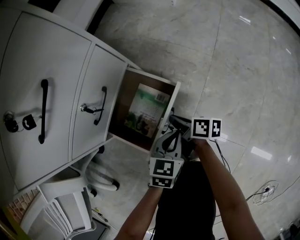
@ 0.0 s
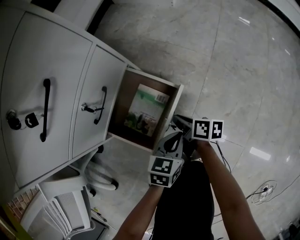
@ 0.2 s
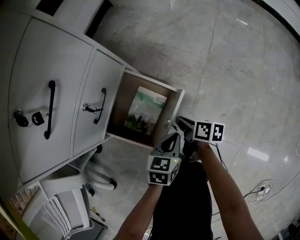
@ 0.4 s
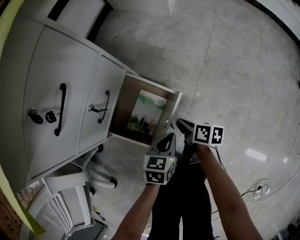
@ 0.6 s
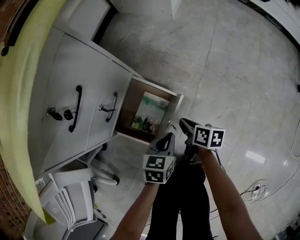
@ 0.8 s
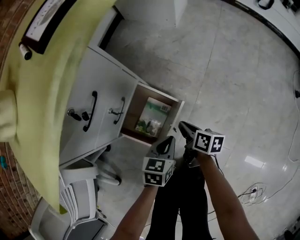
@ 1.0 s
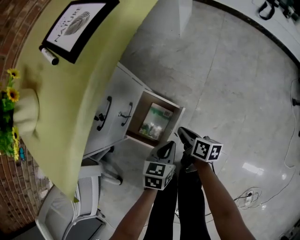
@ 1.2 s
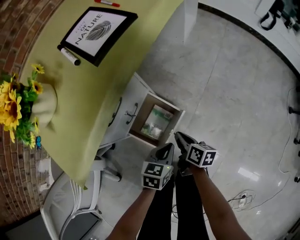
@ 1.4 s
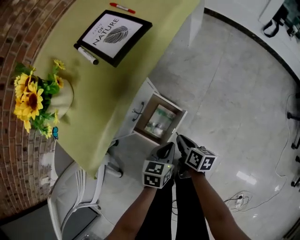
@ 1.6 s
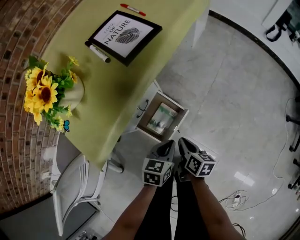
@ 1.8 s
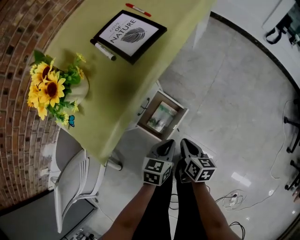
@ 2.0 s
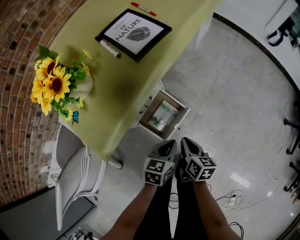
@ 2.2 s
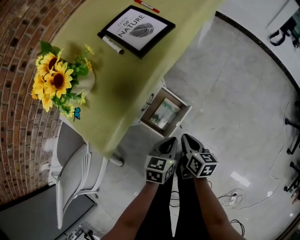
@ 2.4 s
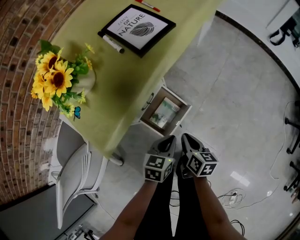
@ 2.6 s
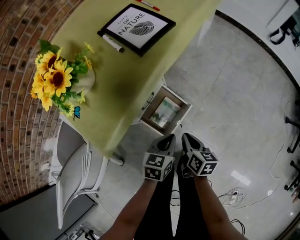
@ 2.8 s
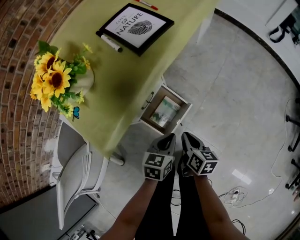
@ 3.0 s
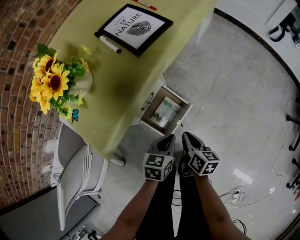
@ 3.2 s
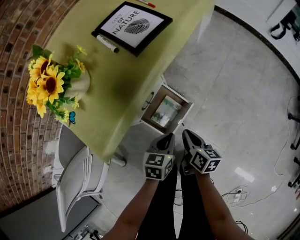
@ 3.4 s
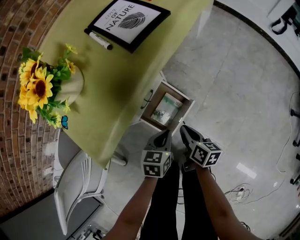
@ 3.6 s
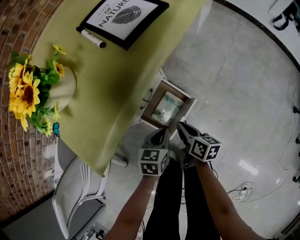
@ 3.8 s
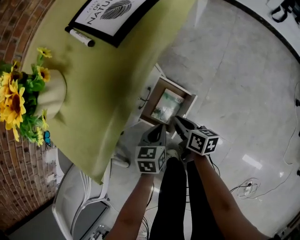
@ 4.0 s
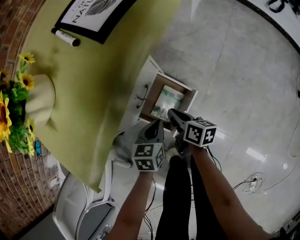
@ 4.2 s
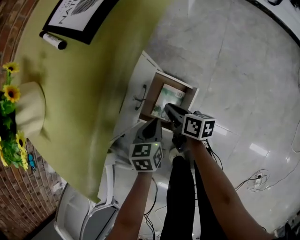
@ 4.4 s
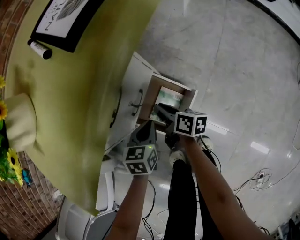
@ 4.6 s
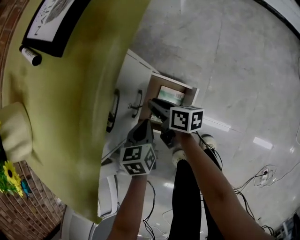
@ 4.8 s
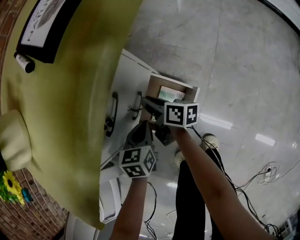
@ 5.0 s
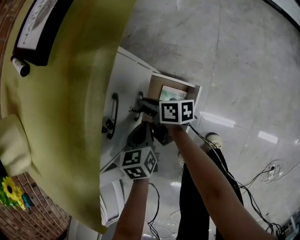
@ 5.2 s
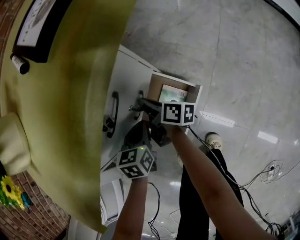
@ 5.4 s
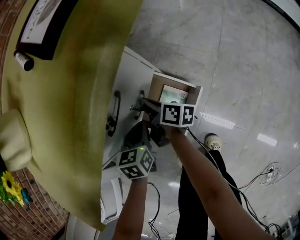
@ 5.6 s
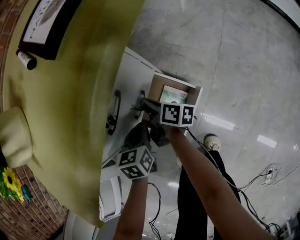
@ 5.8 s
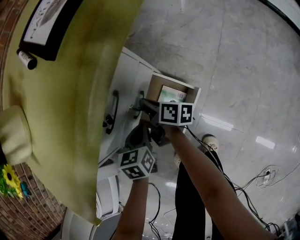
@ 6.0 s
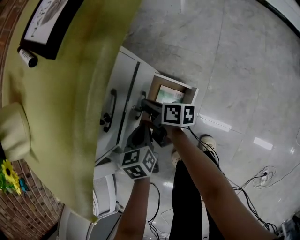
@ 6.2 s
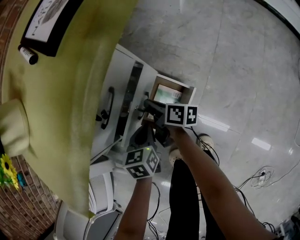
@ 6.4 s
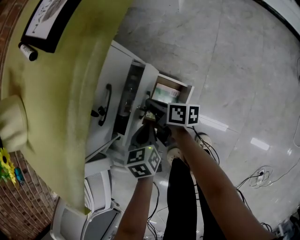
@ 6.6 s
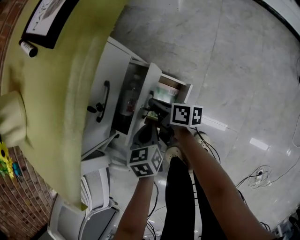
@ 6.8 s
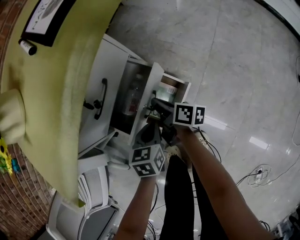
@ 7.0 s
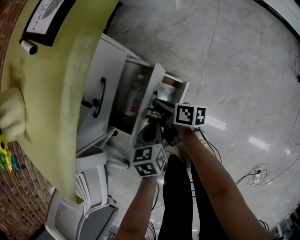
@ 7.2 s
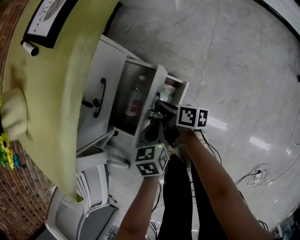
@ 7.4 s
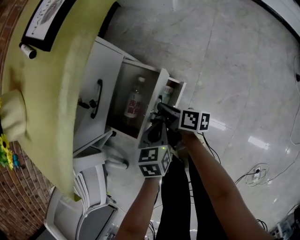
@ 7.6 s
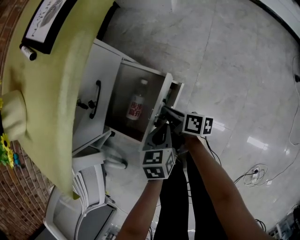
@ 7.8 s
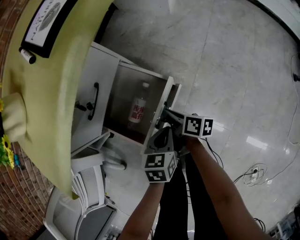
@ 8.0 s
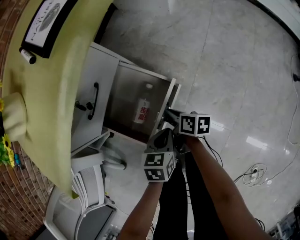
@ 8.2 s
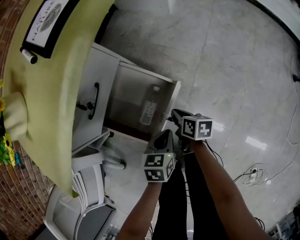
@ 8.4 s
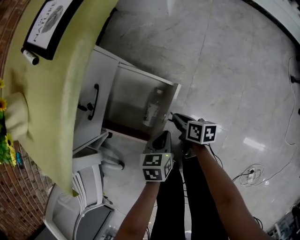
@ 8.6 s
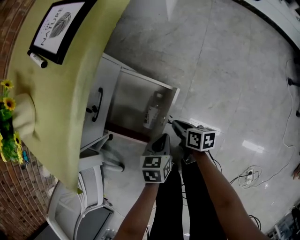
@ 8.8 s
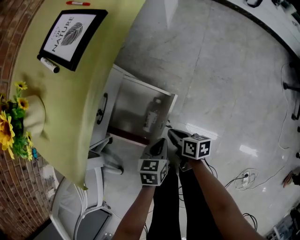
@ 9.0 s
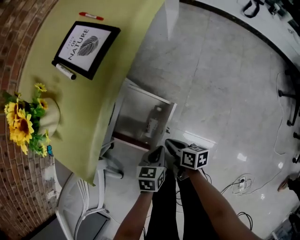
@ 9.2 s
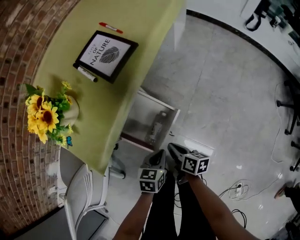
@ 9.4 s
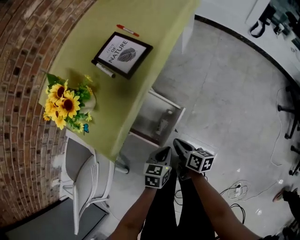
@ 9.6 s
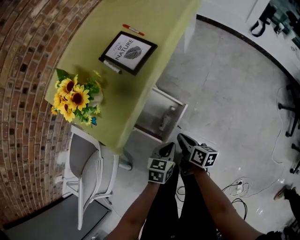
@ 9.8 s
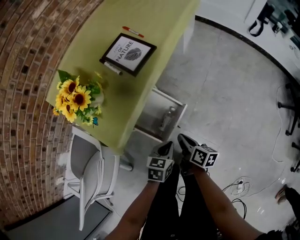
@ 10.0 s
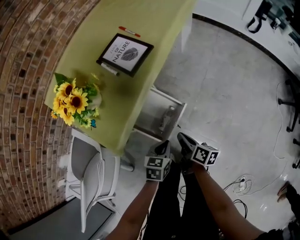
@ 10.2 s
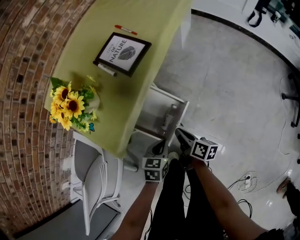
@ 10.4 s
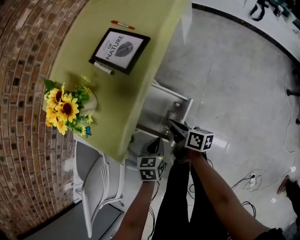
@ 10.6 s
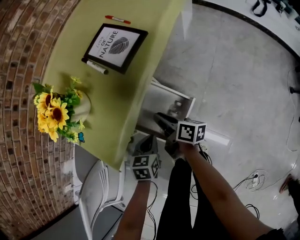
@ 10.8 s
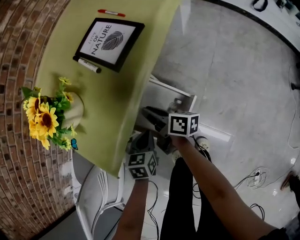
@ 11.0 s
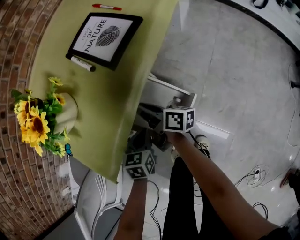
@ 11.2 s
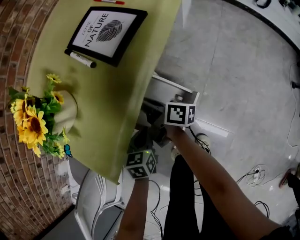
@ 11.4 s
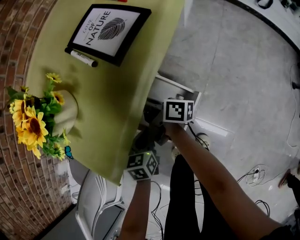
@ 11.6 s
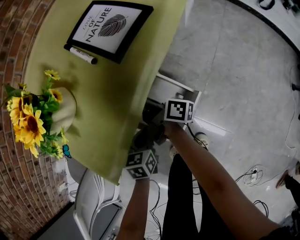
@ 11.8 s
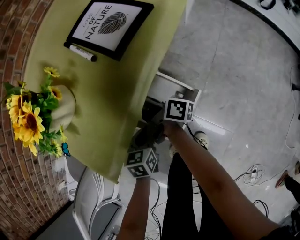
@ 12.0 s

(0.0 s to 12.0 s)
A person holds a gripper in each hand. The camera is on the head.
0.0 s - 1.6 s: The grippers both shift upward by roughly 25 cm.
1.6 s - 3.0 s: Both grippers travel together upward, roughly 5 cm.
3.0 s - 4.4 s: The right gripper goes about 20 cm downward, forward and to the left, and swivels about 20 degrees; the left gripper heads downward, to the left and forward, covering some 15 cm.
4.4 s - 6.0 s: The right gripper travels forward and to the left by about 10 cm; the left gripper moves approximately 5 cm.
6.0 s - 7.6 s: The left gripper is displaced to the right and backward by approximately 15 cm. The right gripper moves backward and to the right, about 15 cm.
7.6 s - 9.0 s: The right gripper goes some 10 cm backward and to the right. The left gripper moves about 5 cm.
9.0 s - 10.4 s: Both grippers move upward, roughly 15 cm.
10.4 s - 12.0 s: The left gripper heads downward, forward and to the left, covering some 15 cm. Meanwhile the right gripper goes about 25 cm forward and to the left, and changes its angle by roughly 30 degrees.

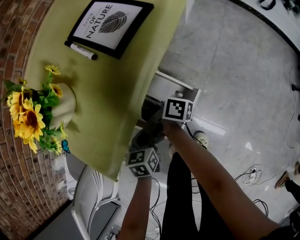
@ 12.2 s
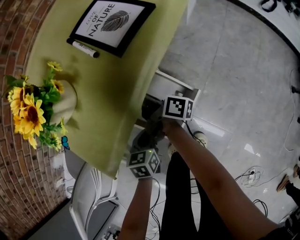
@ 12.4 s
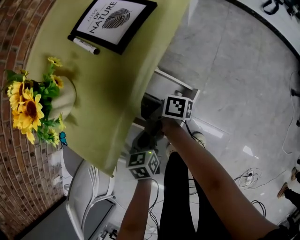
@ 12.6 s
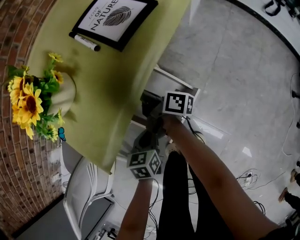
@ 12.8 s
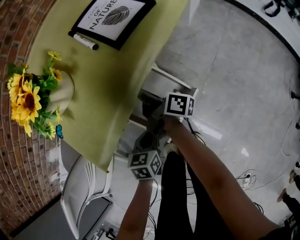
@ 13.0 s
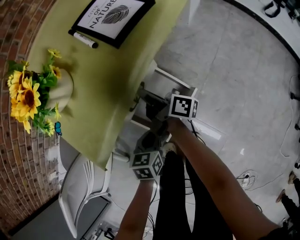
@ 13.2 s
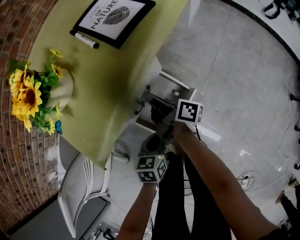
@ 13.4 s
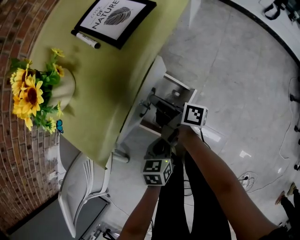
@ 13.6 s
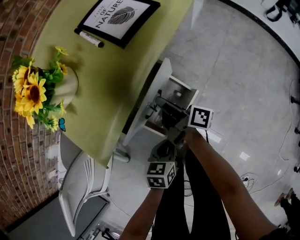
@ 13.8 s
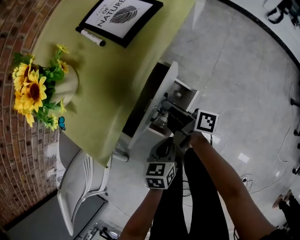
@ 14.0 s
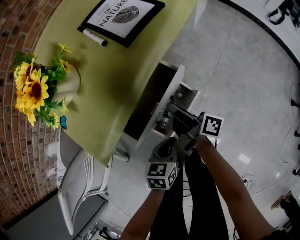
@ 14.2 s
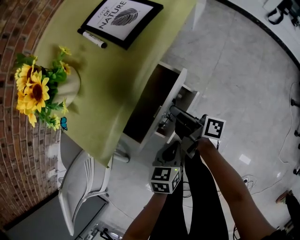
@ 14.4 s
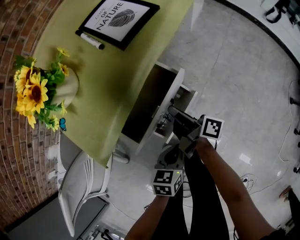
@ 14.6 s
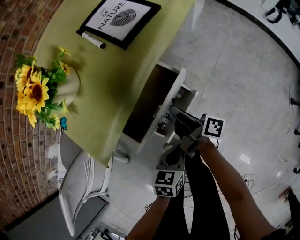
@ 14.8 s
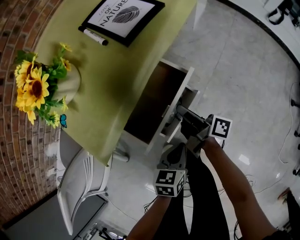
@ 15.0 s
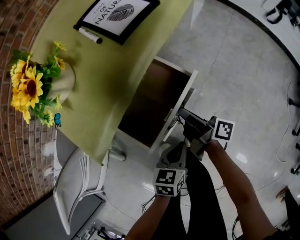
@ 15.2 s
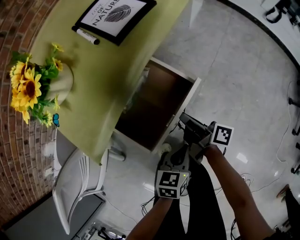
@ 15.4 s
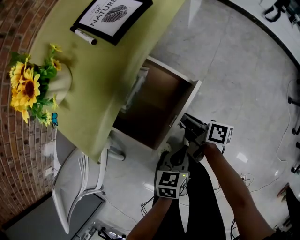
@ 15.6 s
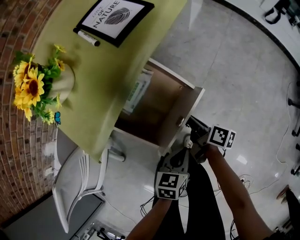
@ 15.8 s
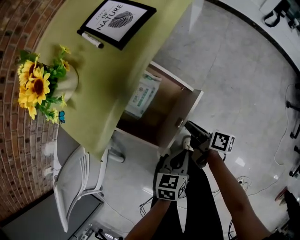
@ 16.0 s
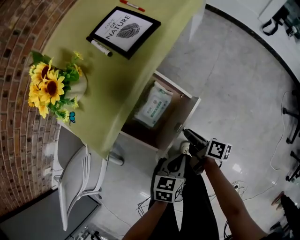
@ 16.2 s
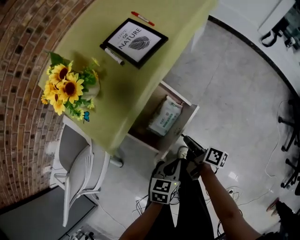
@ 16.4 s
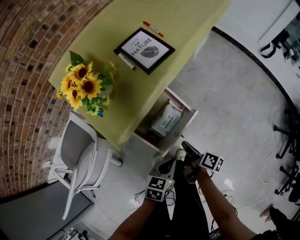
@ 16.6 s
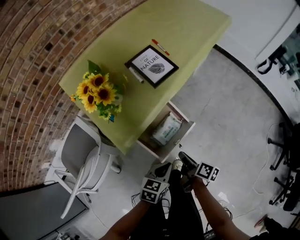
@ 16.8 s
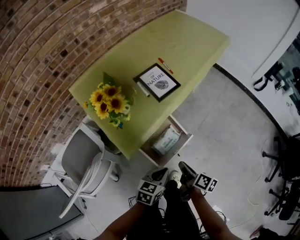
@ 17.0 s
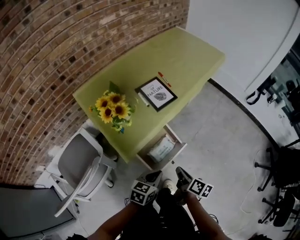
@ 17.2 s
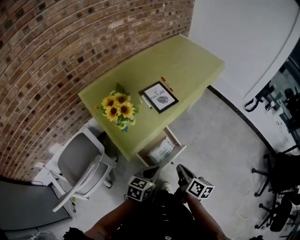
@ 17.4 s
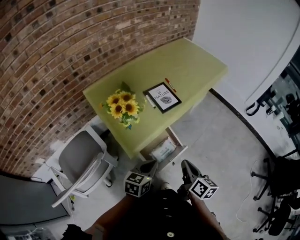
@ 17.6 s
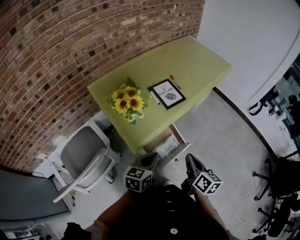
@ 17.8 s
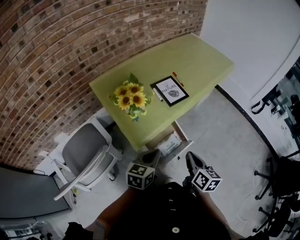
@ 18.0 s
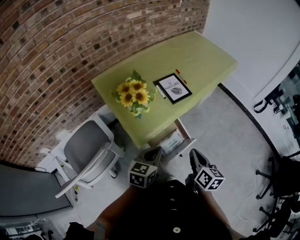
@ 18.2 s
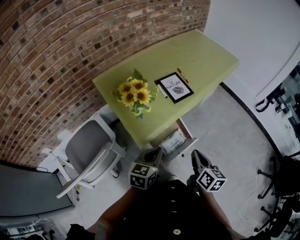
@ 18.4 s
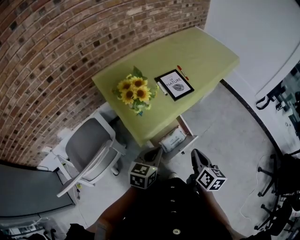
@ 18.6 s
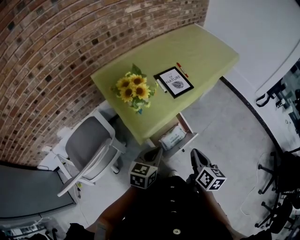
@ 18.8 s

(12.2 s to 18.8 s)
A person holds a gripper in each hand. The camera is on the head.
12.2 s - 13.8 s: The two grippers go roughly 10 cm backward and to the right.
13.8 s - 15.4 s: The left gripper is displaced to the right by about 5 cm. Meanwhile the right gripper moves to the right and backward, about 10 cm.
15.4 s - 17.2 s: The left gripper moves upward, about 25 cm. Meanwhile the right gripper moves upward and backward, roughly 25 cm, and swivels roughly 30 degrees.
17.2 s - 18.8 s: The left gripper shifts about 10 cm upward and to the left; the right gripper travels upward by roughly 10 cm, and swivels approximately 30 degrees.

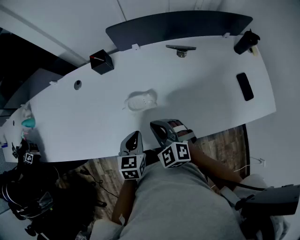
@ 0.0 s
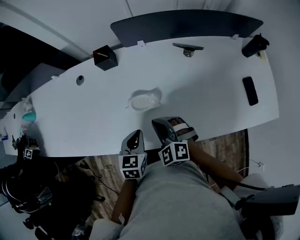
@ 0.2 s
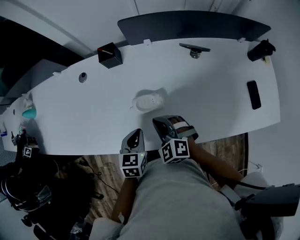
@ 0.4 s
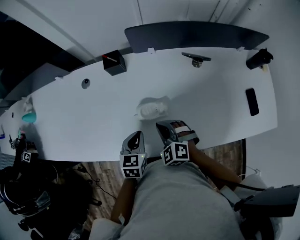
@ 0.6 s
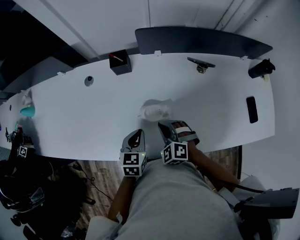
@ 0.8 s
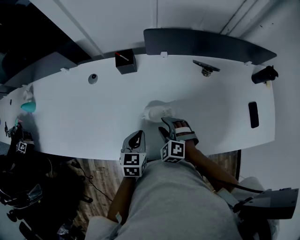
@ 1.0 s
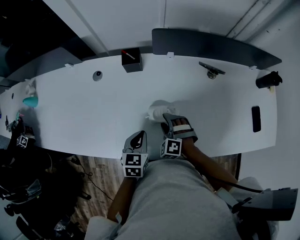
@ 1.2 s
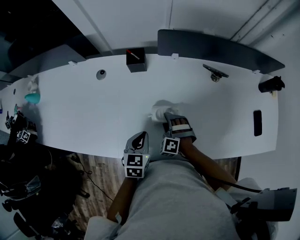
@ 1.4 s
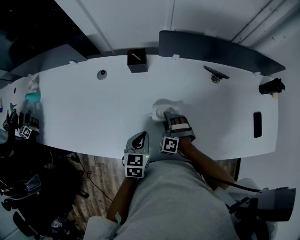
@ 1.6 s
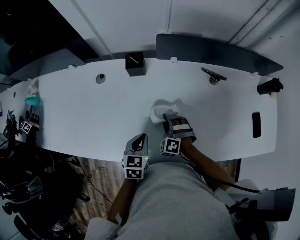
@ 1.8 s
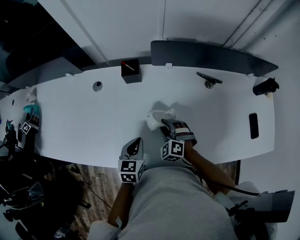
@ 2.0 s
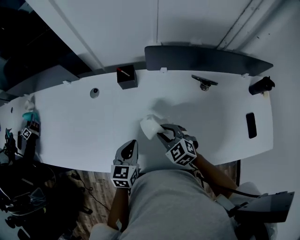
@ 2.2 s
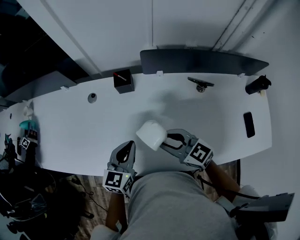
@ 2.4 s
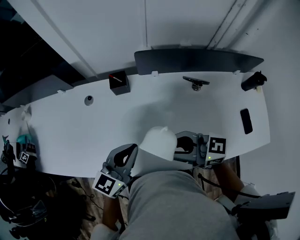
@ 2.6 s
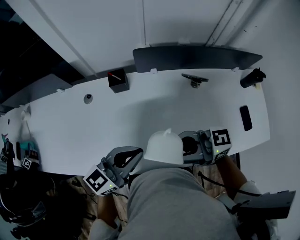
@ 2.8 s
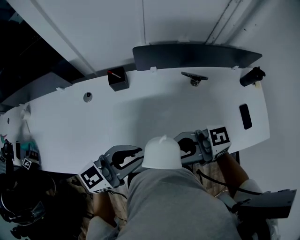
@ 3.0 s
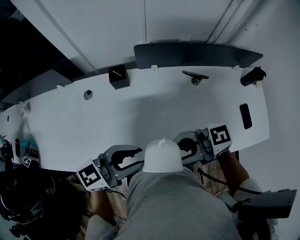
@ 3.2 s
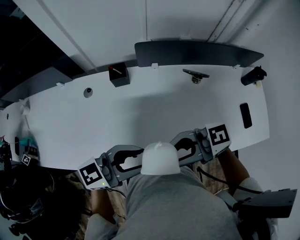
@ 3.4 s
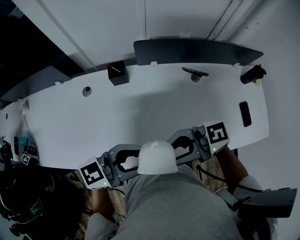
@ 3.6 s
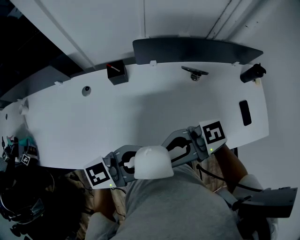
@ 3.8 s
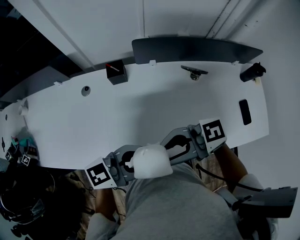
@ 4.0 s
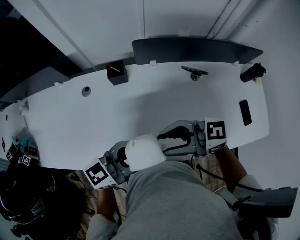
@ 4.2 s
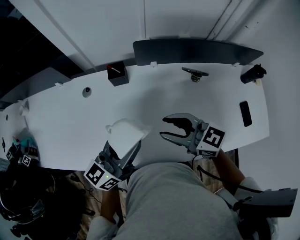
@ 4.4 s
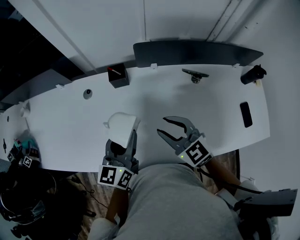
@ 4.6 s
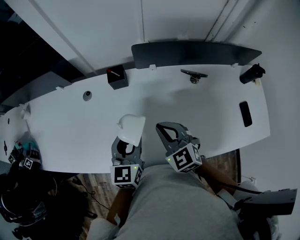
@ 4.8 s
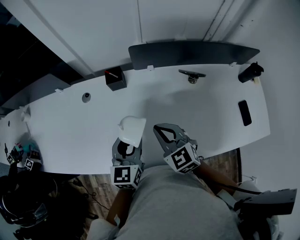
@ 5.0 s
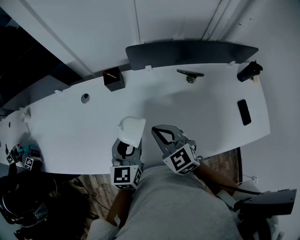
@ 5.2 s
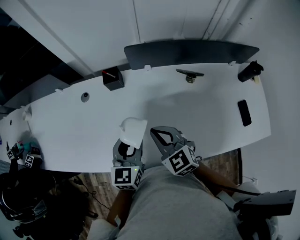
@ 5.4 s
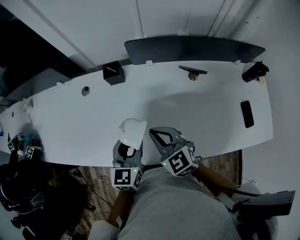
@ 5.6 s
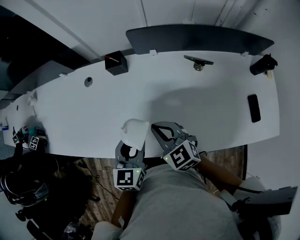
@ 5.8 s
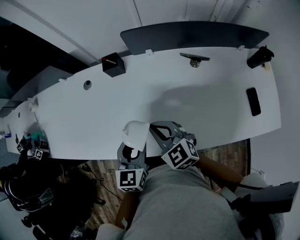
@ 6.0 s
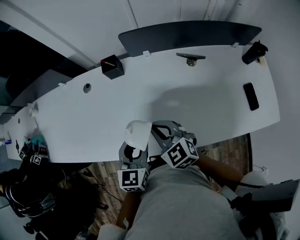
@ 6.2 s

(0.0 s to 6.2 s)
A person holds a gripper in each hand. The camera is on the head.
0.0 s - 1.6 s: The right gripper is displaced downward and forward by roughly 20 cm, rotates some 40 degrees, and opens its fingers. The left gripper heads forward and to the left, covering about 10 cm.
1.6 s - 3.2 s: The left gripper goes some 20 cm upward, tilts its fingers about 40 degrees upward, and opens its fingers, while the right gripper goes some 35 cm upward, and tips its fingers upward by about 50 degrees.
3.2 s - 4.6 s: The right gripper shifts by roughly 15 cm, and angles its fingers downward, by roughly 30 degrees. Meanwhile the left gripper moves roughly 10 cm, and turns by roughly 50 degrees.
4.6 s - 6.2 s: The right gripper goes some 5 cm backward, and closes up; the left gripper is displaced backward and downward by roughly 10 cm, and swivels approximately 20 degrees.
